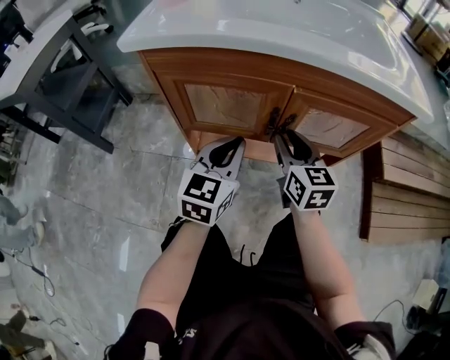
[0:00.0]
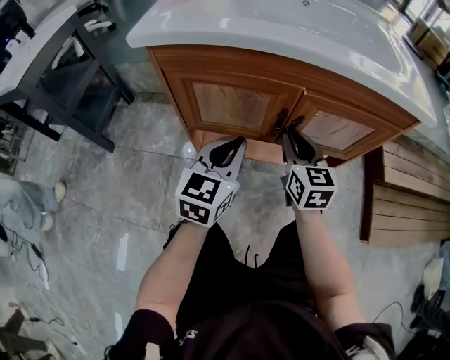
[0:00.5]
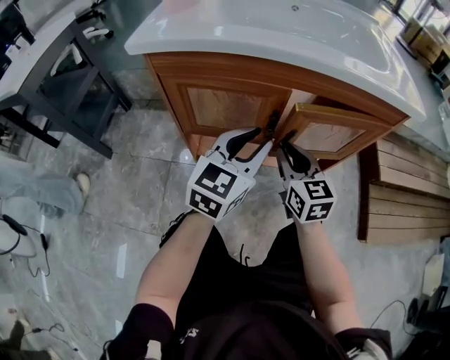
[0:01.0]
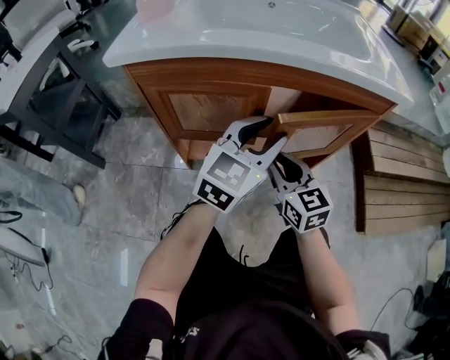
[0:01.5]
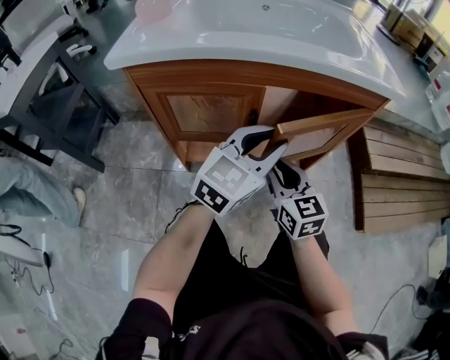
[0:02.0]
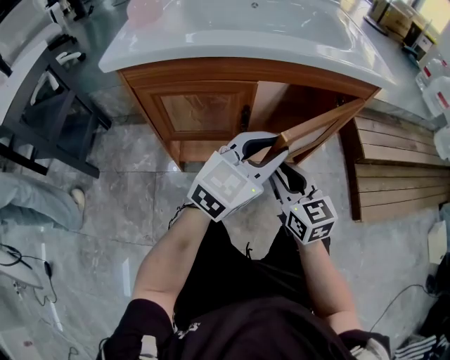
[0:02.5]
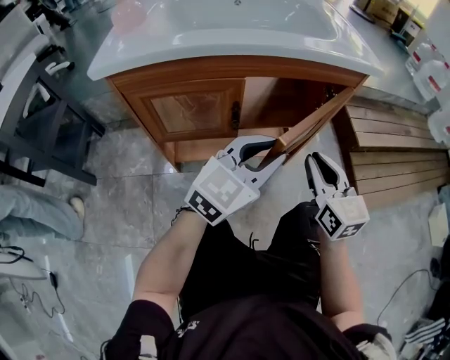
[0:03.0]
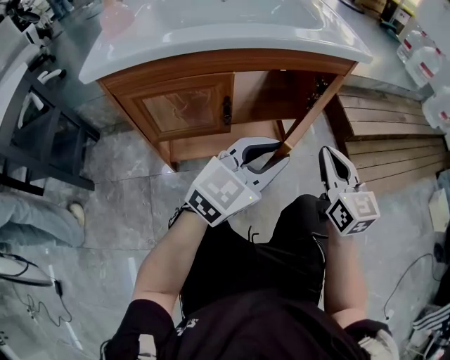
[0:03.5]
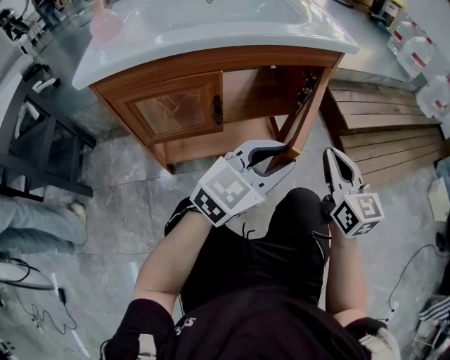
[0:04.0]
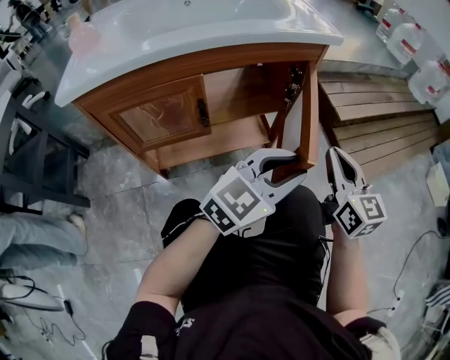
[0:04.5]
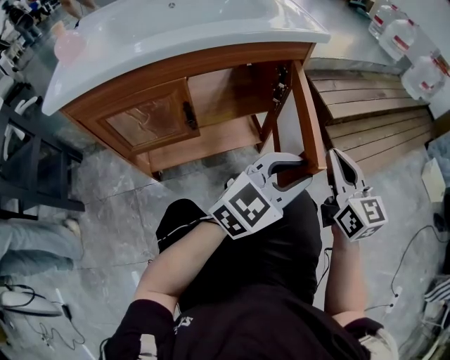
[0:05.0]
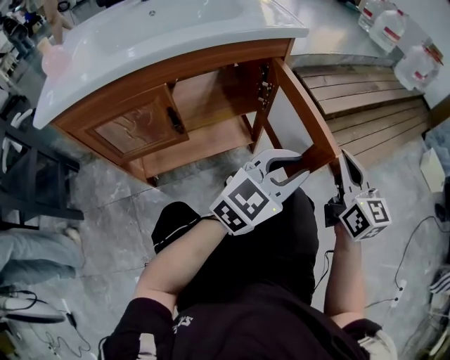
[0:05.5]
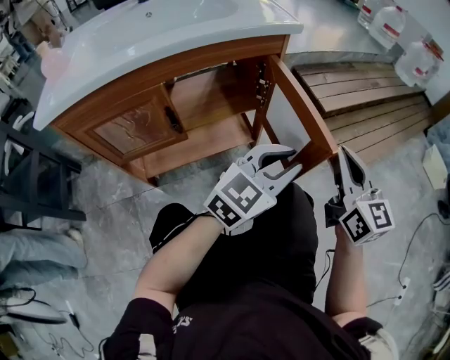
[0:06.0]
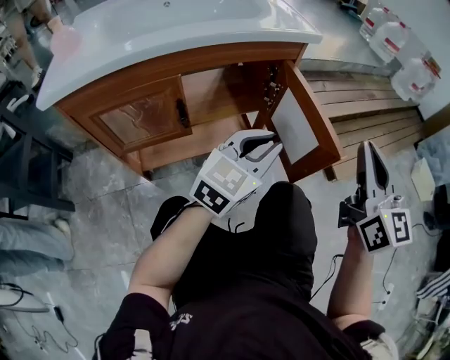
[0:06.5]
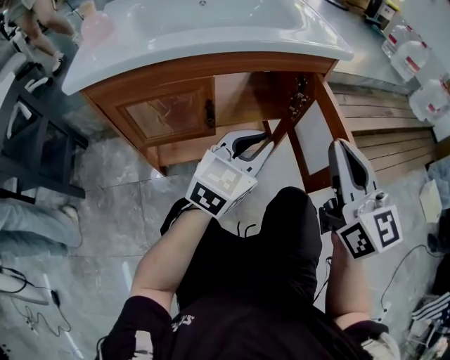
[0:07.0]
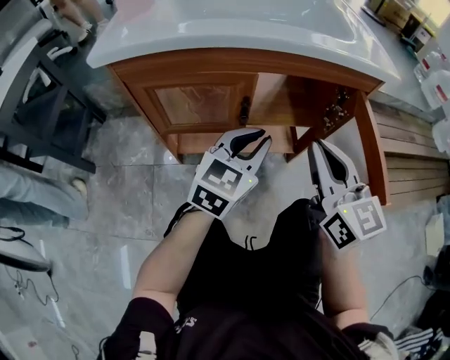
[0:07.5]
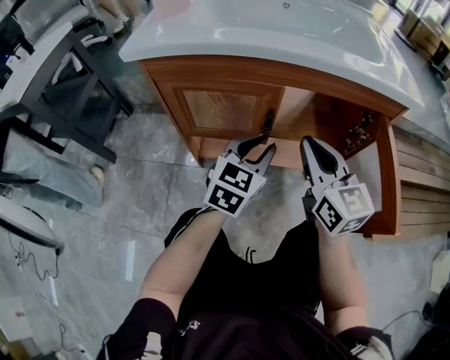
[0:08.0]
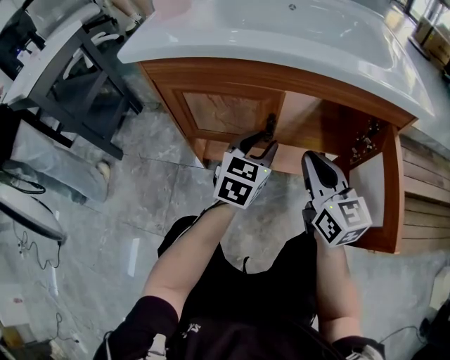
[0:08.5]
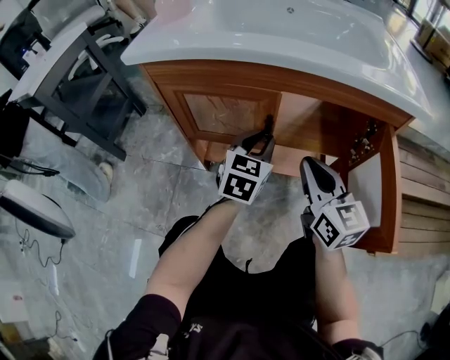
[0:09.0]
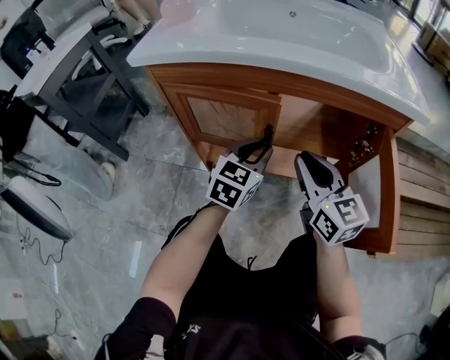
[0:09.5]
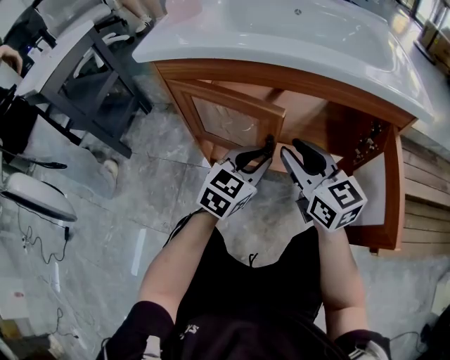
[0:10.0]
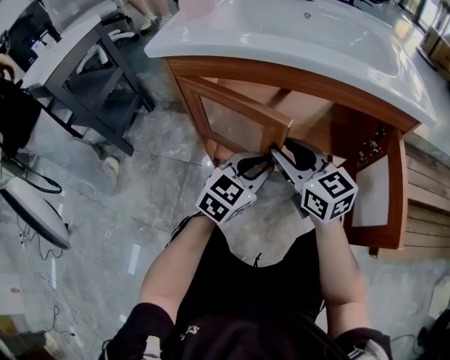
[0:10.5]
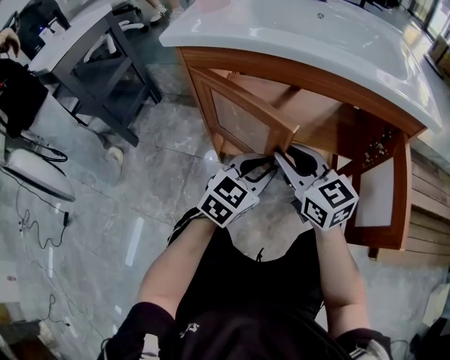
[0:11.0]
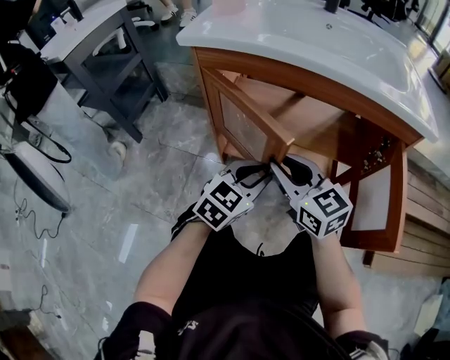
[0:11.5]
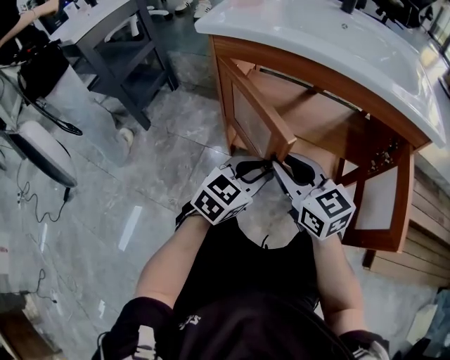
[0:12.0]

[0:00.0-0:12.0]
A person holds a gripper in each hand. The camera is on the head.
0.0 to 2.0 s: The left gripper shifts some 15 cm to the right and upward, rotates some 30 degrees, and opens its fingers; the right gripper is displaced backward by approximately 10 cm.
2.0 to 4.0 s: The right gripper shifts approximately 20 cm to the right and upward, and turns by approximately 20 degrees. Meanwhile the left gripper is displaced to the right and backward by roughly 15 cm, and turns by approximately 20 degrees.
4.0 to 6.0 s: Both grippers move to the right, about 10 cm.
6.0 to 8.0 s: The left gripper shifts by roughly 30 cm, and swivels some 50 degrees. The right gripper goes upward and returns, roughly 10 cm each way, and rotates some 30 degrees.
8.0 to 10.0 s: The right gripper ends up about 5 cm from where it was, and opens its fingers.
10.0 to 12.0 s: The left gripper heads backward and to the left, covering about 10 cm, while the right gripper is displaced to the left and backward by some 10 cm.

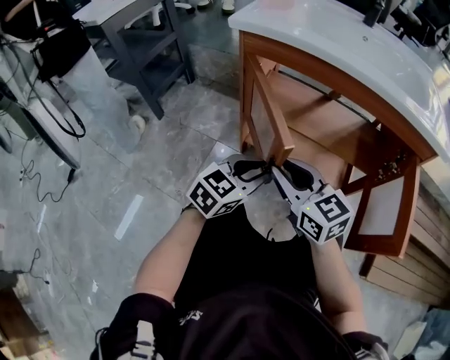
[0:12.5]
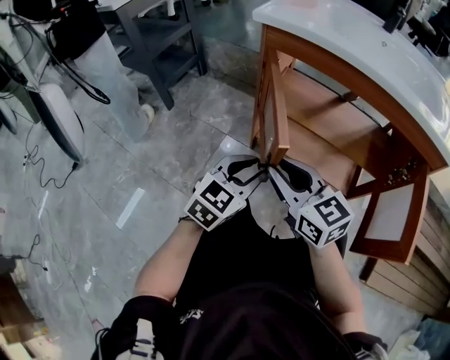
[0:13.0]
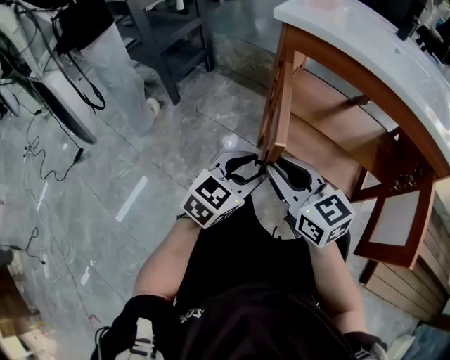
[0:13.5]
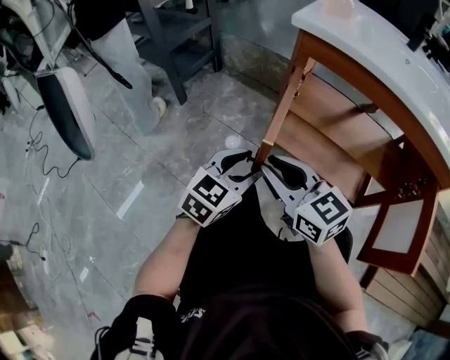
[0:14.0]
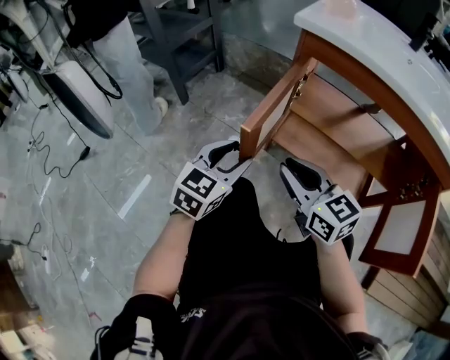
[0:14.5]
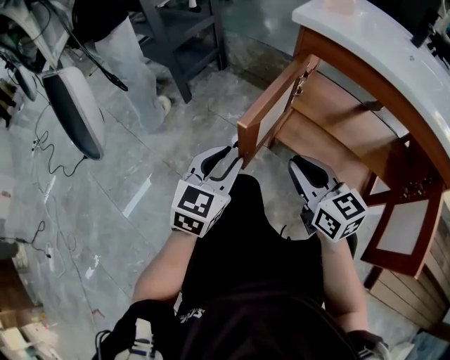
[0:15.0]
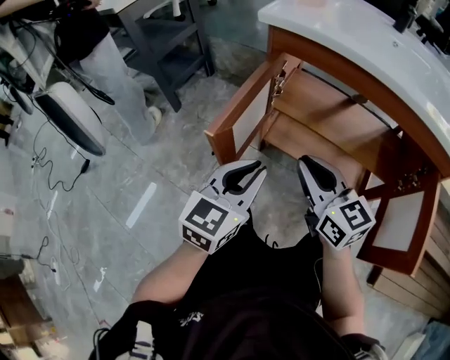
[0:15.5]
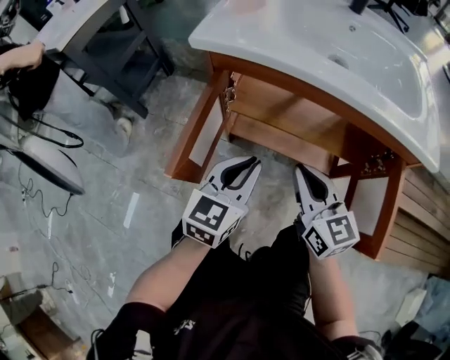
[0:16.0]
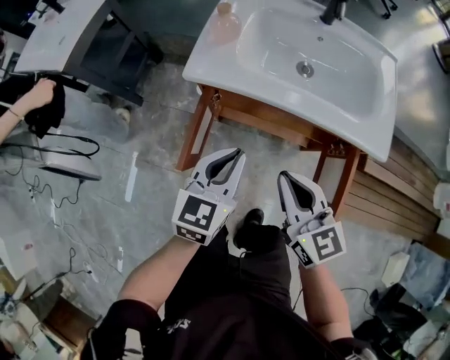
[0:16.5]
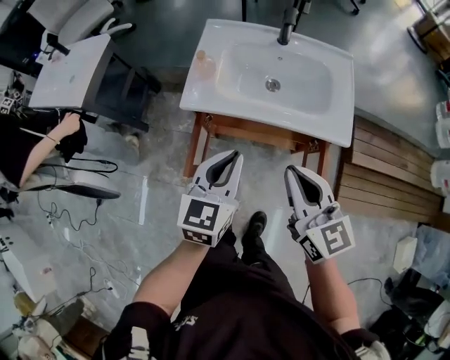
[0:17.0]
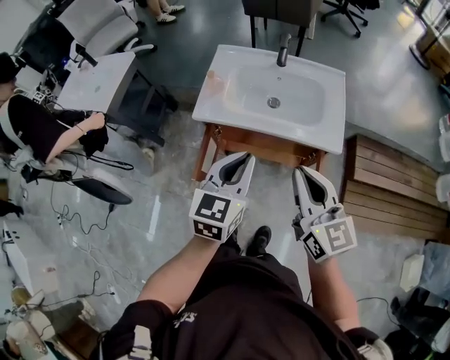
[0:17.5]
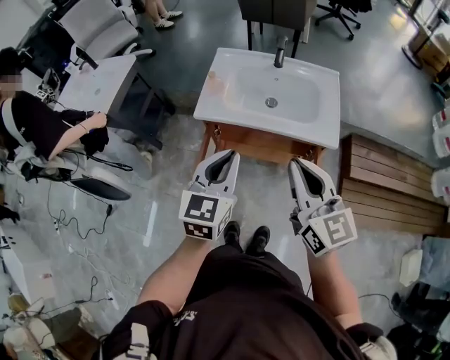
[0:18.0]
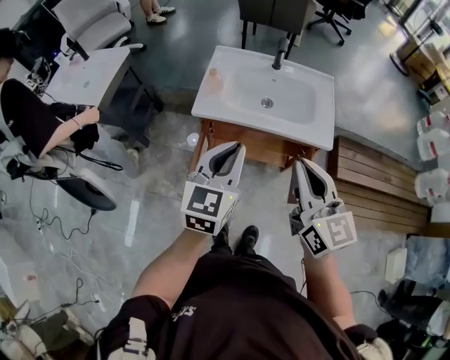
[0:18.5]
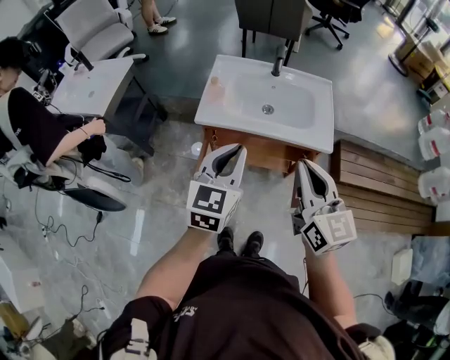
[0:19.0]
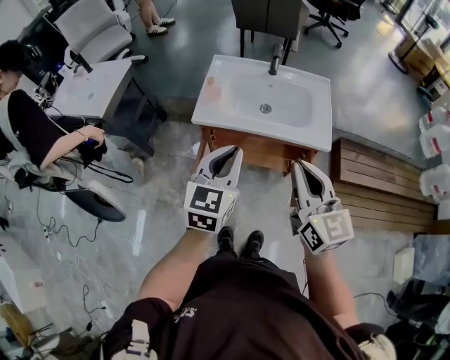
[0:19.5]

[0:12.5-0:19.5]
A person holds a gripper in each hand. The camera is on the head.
12.5 to 14.5 s: The left gripper is displaced to the left by roughly 15 cm, turns by about 20 degrees, and opens. The right gripper travels to the left by approximately 10 cm.
14.5 to 16.0 s: The two grippers go some 20 cm to the right and upward. The right gripper changes its angle by approximately 30 degrees, while the left gripper closes its fingers.
16.0 to 17.5 s: The grippers both shift upward by approximately 40 cm.
17.5 to 19.5 s: The right gripper goes approximately 5 cm upward. The left gripper heads to the left, covering approximately 5 cm.

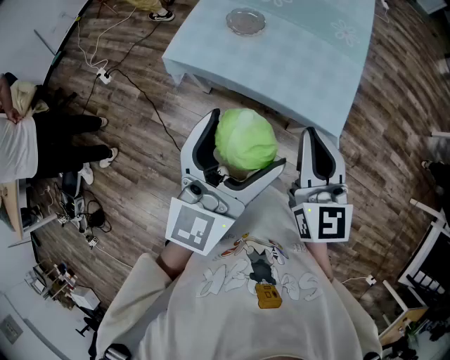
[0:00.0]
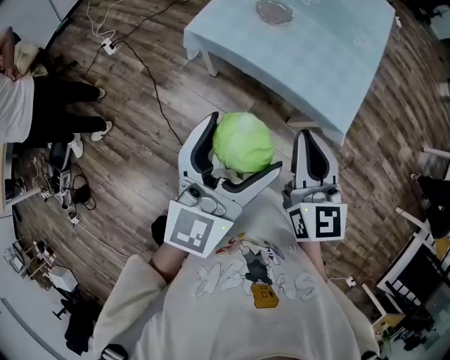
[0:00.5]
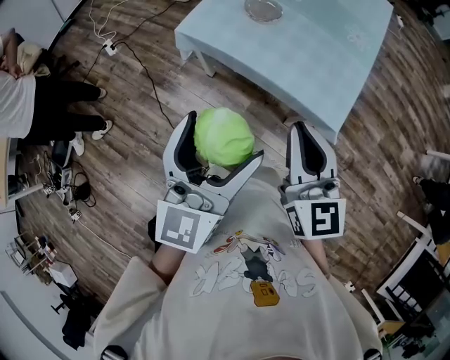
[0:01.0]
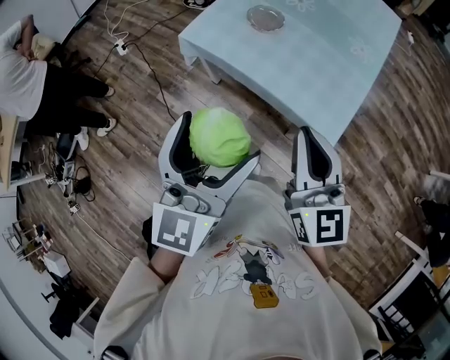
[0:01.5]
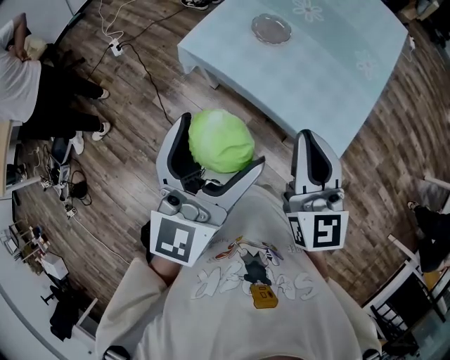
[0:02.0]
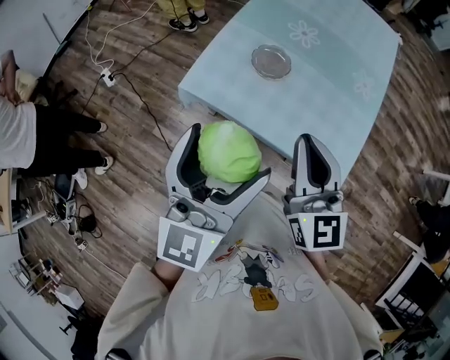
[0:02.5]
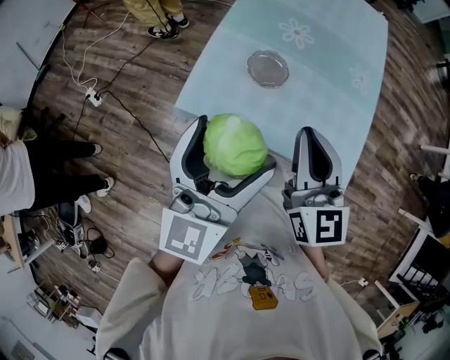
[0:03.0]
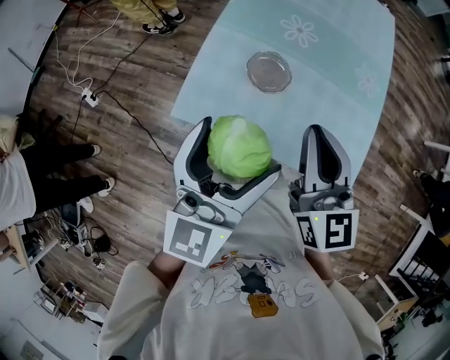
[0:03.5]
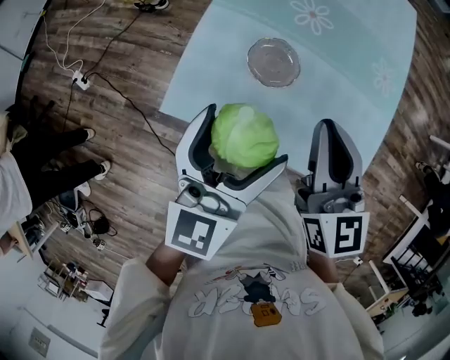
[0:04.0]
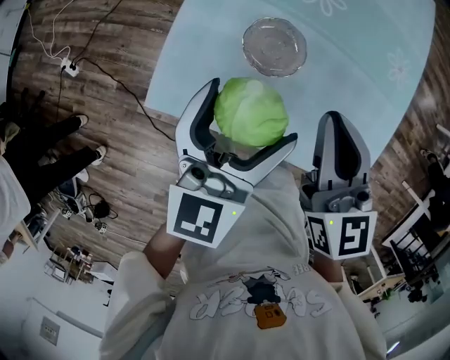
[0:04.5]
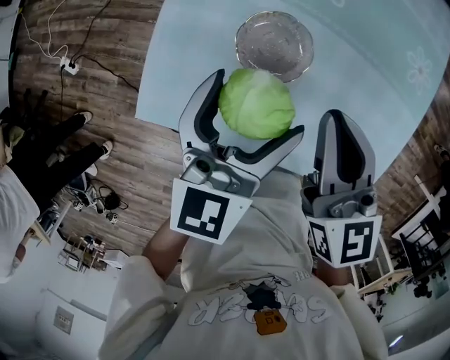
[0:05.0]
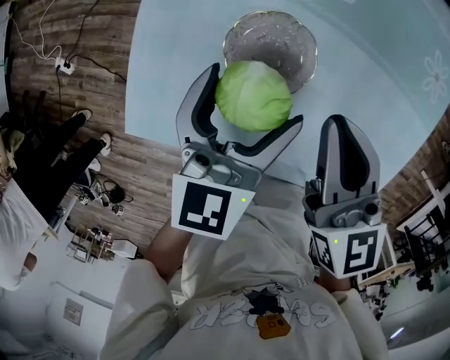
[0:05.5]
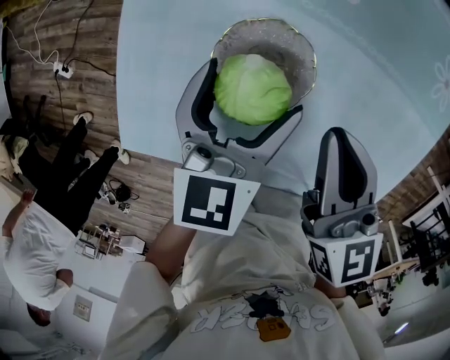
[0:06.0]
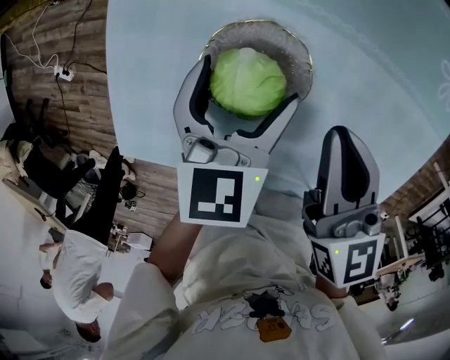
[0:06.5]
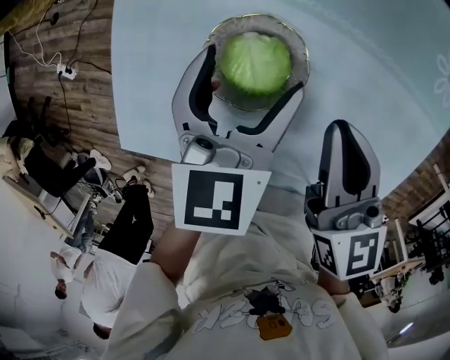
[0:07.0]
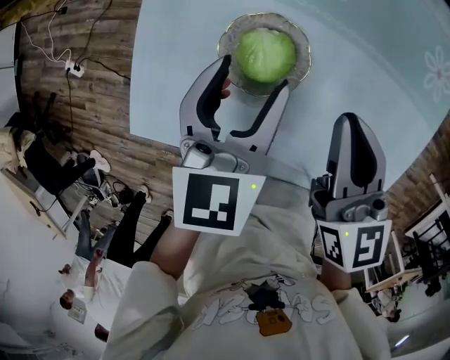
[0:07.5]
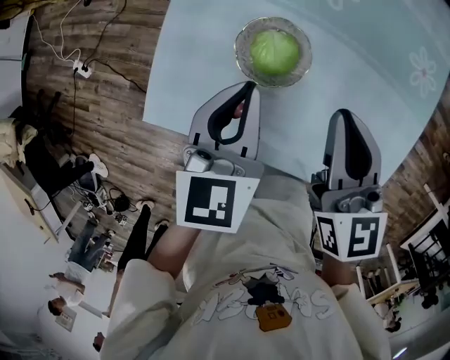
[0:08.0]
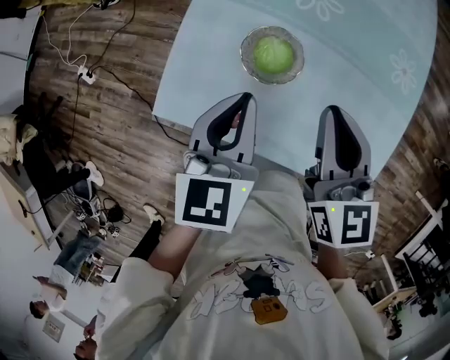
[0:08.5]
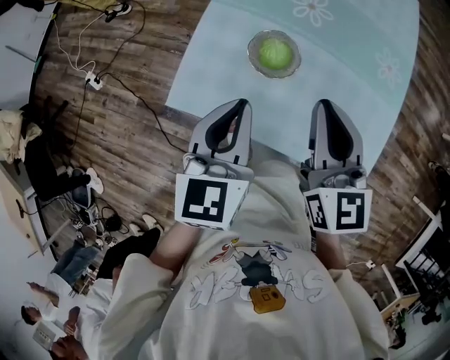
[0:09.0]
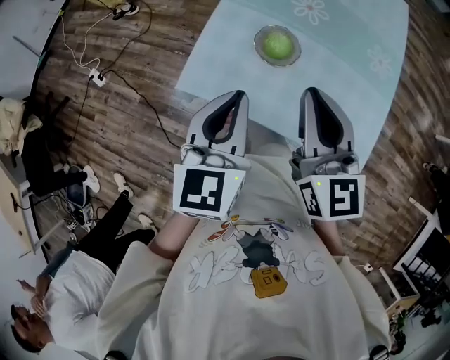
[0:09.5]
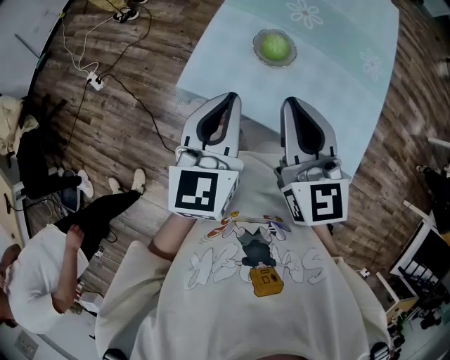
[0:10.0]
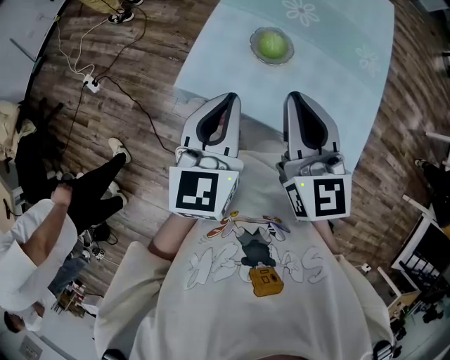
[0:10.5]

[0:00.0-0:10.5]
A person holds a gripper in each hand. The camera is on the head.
0.0 to 2.0 s: The right gripper travels forward by approximately 5 cm. The left gripper shifts approximately 5 cm to the left.
2.0 to 4.0 s: Both grippers travel together forward, some 30 cm. The left gripper swivels approximately 20 degrees.
4.0 to 6.5 s: Both grippers move downward and forward, about 30 cm. The right gripper swivels about 20 degrees. The left gripper angles its fingers downward, by approximately 30 degrees.
6.5 to 8.5 s: Both grippers move upward and backward, approximately 20 cm. The left gripper closes up.
8.5 to 10.5 s: The grippers both shift backward, upward and to the left by approximately 20 cm.
